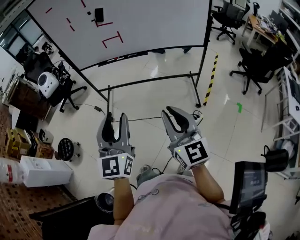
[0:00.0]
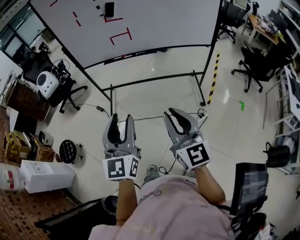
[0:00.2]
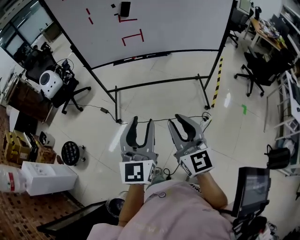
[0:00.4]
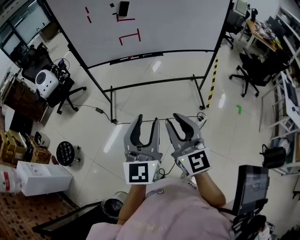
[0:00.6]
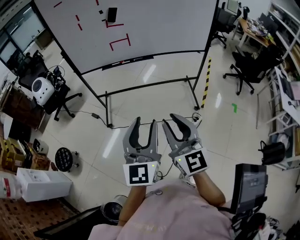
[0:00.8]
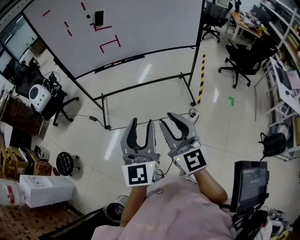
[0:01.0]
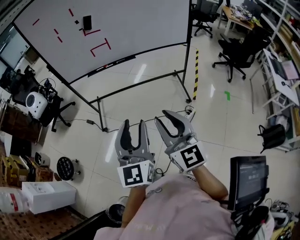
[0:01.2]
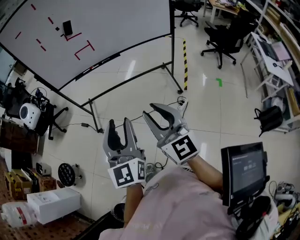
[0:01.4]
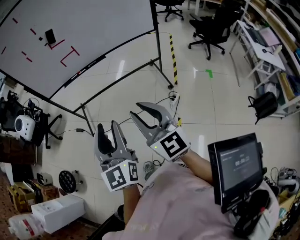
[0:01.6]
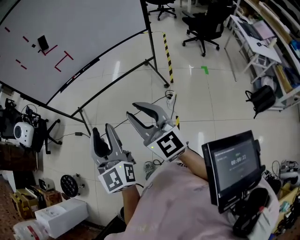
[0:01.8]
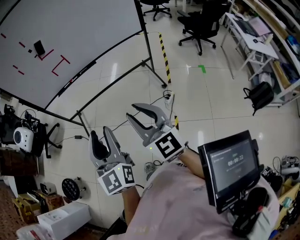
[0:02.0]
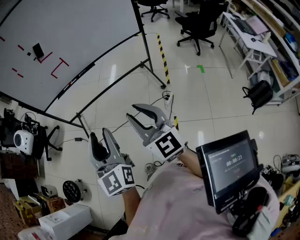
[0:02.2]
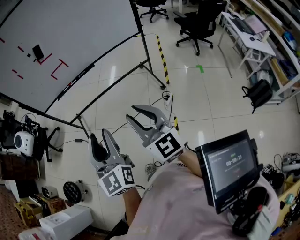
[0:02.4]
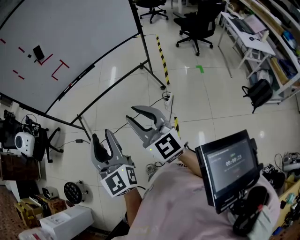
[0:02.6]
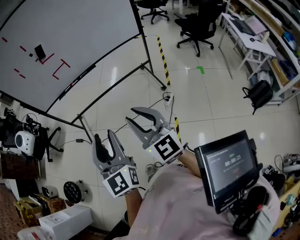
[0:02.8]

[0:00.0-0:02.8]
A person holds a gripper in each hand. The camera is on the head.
0.0 to 1.4 s: The left gripper reaches roughly 10 cm to the left, then returns, while the right gripper travels to the left by some 5 cm.
1.4 to 2.8 s: There are only small adjustments of the grippers.

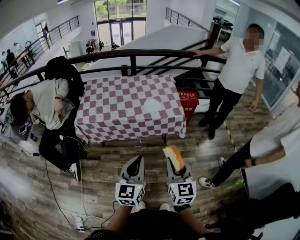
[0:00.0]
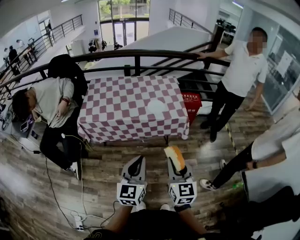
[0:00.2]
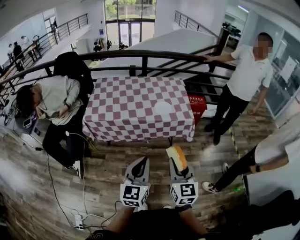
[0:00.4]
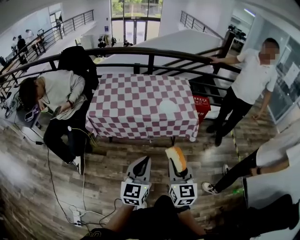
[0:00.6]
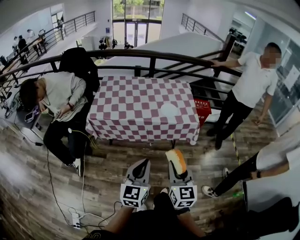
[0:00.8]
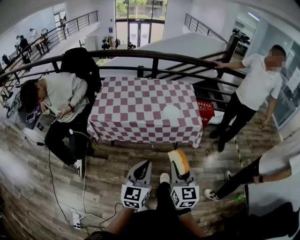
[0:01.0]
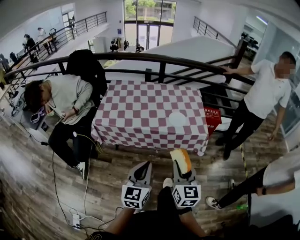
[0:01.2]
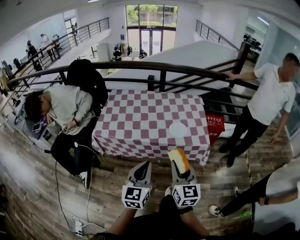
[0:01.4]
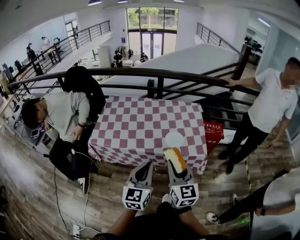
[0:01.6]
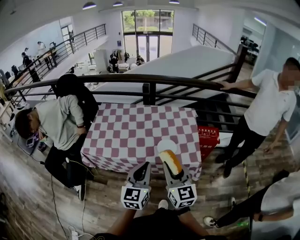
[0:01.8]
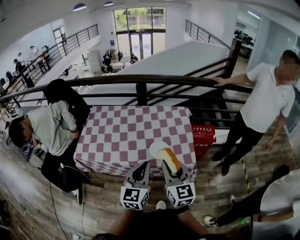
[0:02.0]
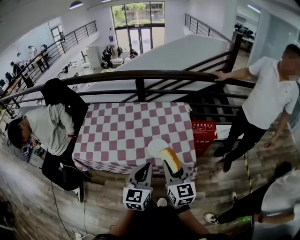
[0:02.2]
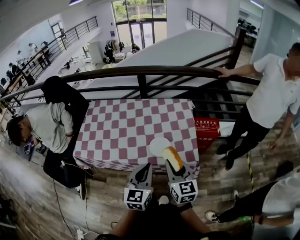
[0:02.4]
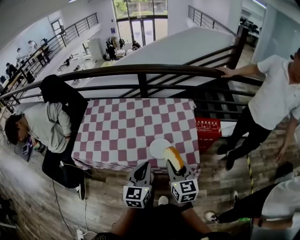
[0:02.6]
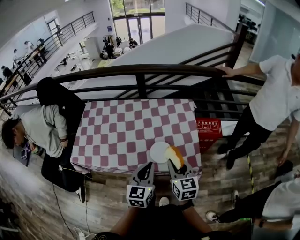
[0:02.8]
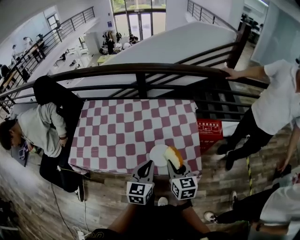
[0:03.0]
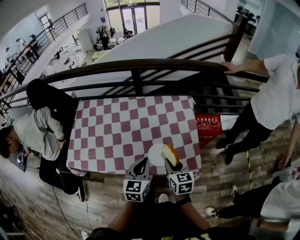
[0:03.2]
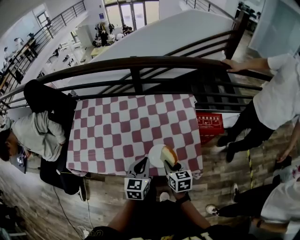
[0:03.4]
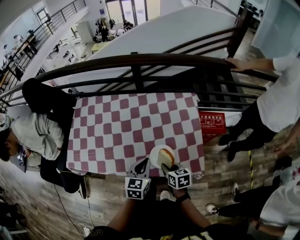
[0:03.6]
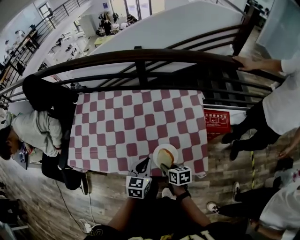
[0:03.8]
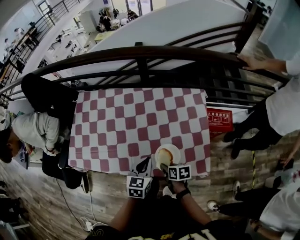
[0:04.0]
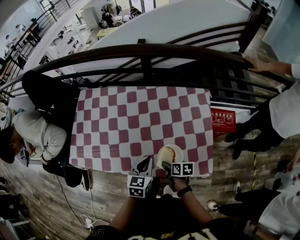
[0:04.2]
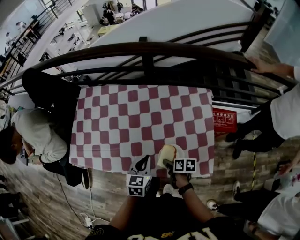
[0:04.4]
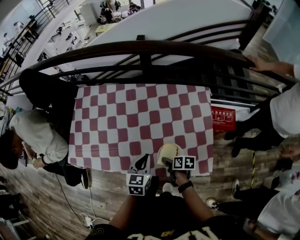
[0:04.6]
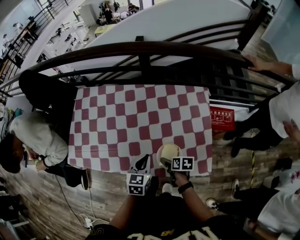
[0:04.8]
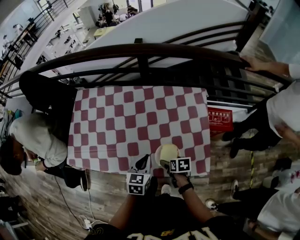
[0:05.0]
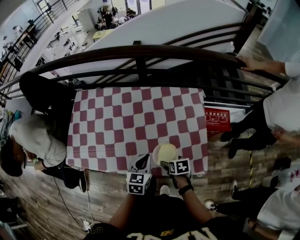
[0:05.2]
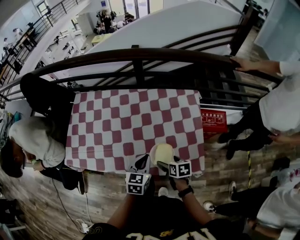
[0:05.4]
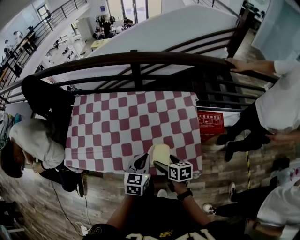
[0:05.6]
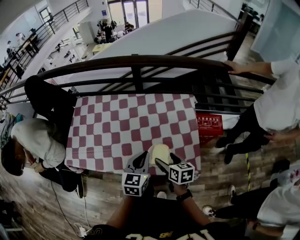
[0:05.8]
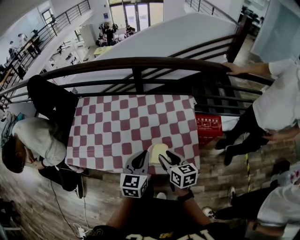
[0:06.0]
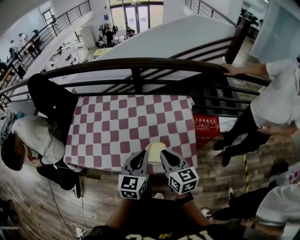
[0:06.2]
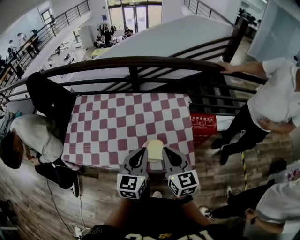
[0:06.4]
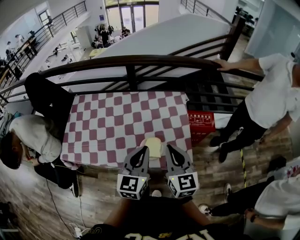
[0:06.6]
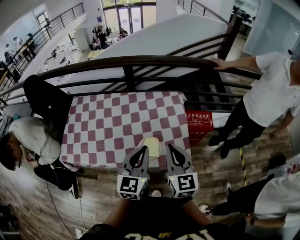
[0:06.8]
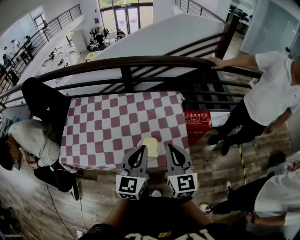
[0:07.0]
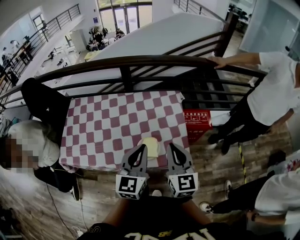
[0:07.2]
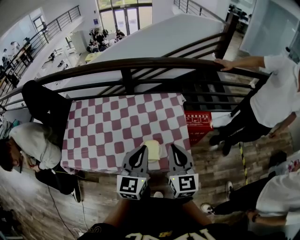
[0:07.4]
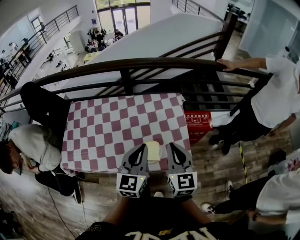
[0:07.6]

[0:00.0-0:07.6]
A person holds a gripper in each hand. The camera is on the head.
0.0 to 1.6 s: Both grippers travel together forward, some 20 cm.
1.6 to 3.0 s: The grippers both shift forward, downward and to the right by some 30 cm. The right gripper rotates approximately 20 degrees.
3.0 to 4.6 s: The right gripper is displaced downward by some 20 cm, and rotates approximately 60 degrees. The left gripper goes approximately 15 cm downward and forward.
4.6 to 6.0 s: The left gripper moves upward, about 15 cm; the right gripper travels upward by roughly 20 cm, rotates roughly 40 degrees, and opens, then closes again.
6.0 to 7.6 s: The right gripper is displaced upward and to the right by some 15 cm, changes its angle by about 40 degrees, and closes its fingers, while the left gripper shifts approximately 10 cm upward and to the right.

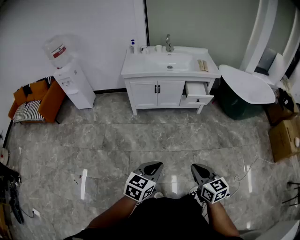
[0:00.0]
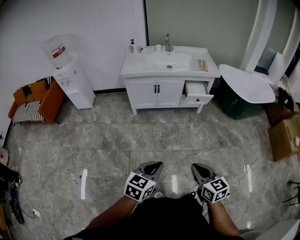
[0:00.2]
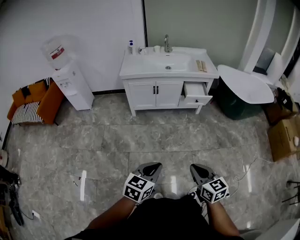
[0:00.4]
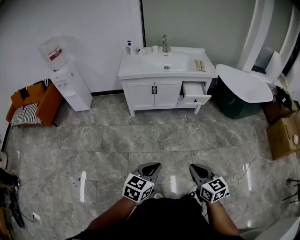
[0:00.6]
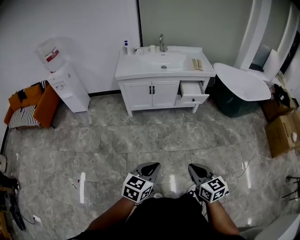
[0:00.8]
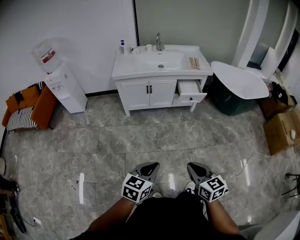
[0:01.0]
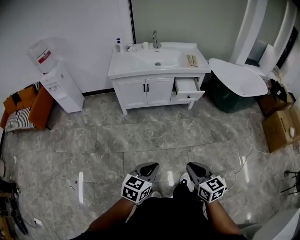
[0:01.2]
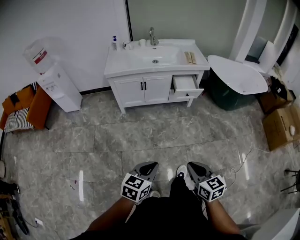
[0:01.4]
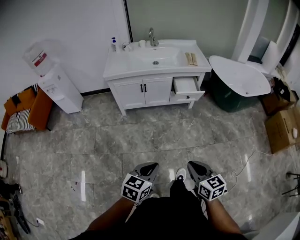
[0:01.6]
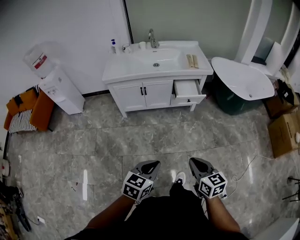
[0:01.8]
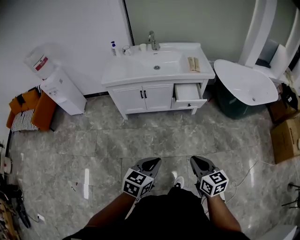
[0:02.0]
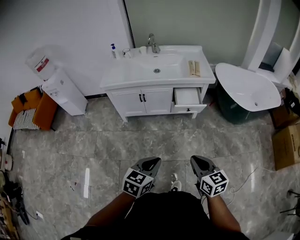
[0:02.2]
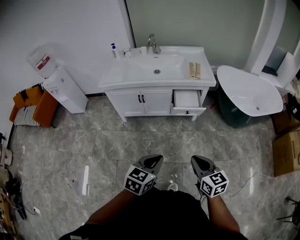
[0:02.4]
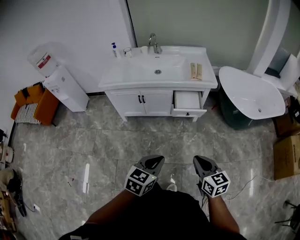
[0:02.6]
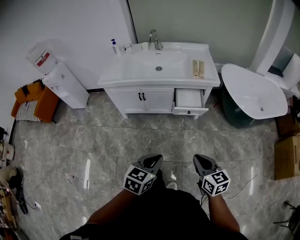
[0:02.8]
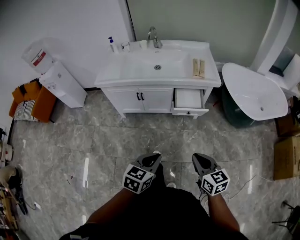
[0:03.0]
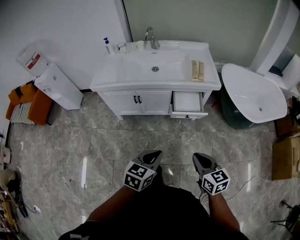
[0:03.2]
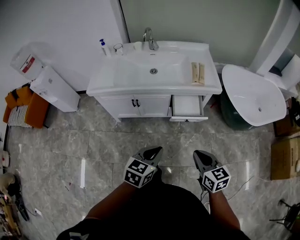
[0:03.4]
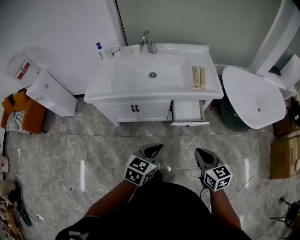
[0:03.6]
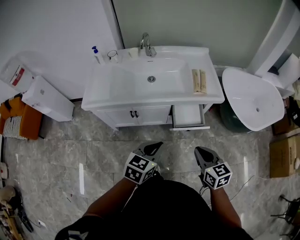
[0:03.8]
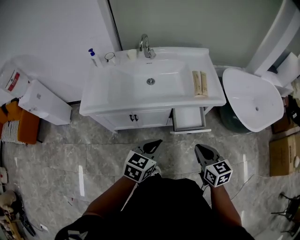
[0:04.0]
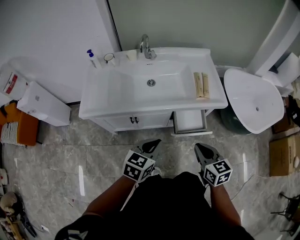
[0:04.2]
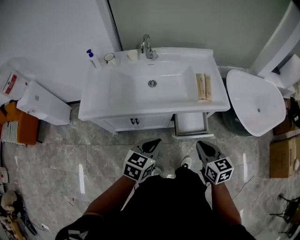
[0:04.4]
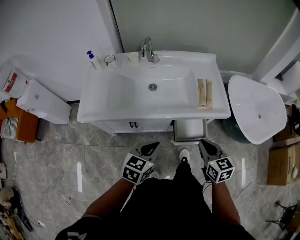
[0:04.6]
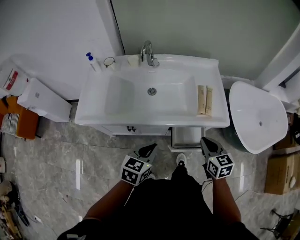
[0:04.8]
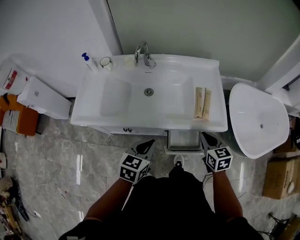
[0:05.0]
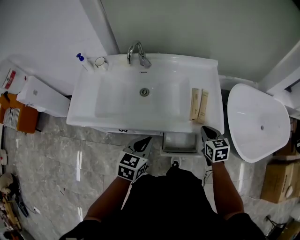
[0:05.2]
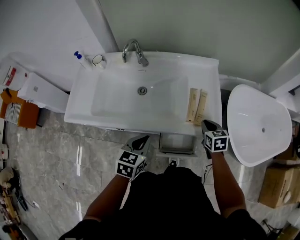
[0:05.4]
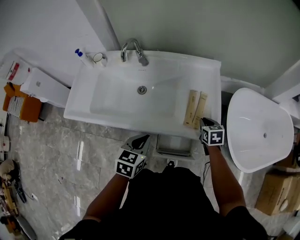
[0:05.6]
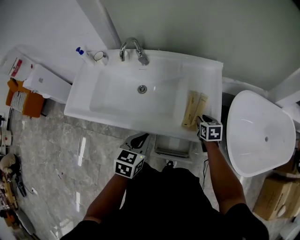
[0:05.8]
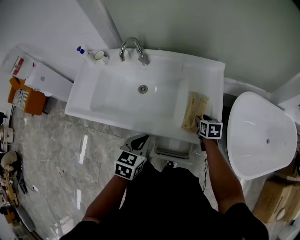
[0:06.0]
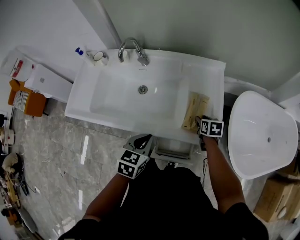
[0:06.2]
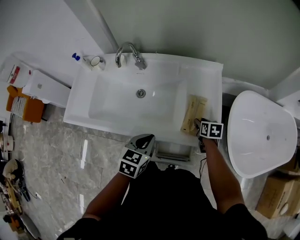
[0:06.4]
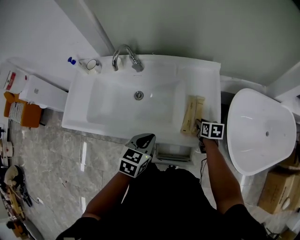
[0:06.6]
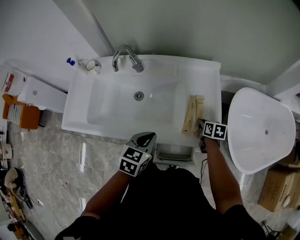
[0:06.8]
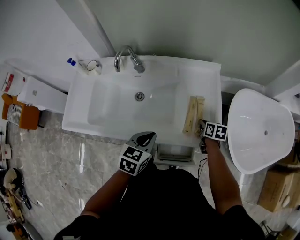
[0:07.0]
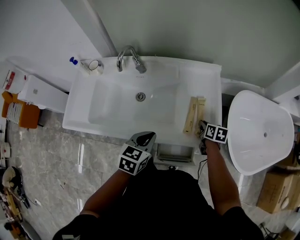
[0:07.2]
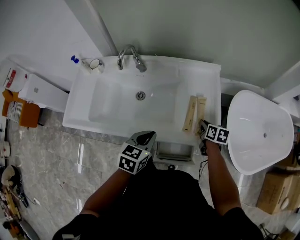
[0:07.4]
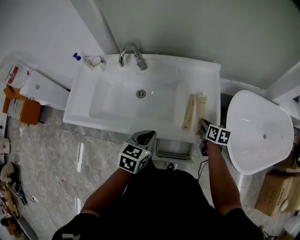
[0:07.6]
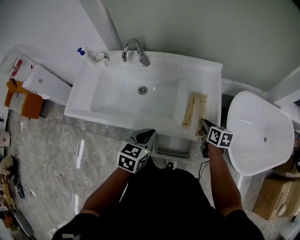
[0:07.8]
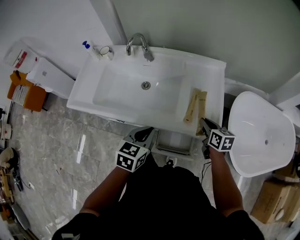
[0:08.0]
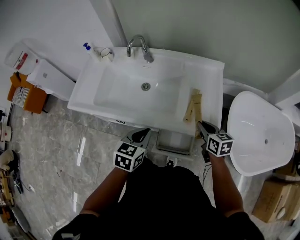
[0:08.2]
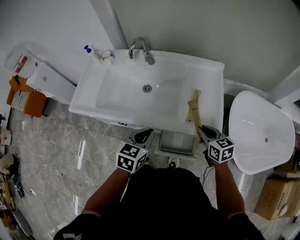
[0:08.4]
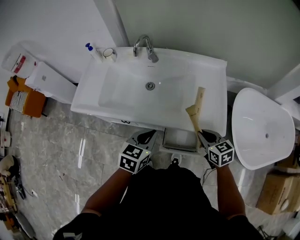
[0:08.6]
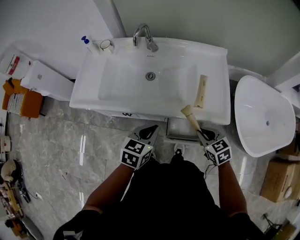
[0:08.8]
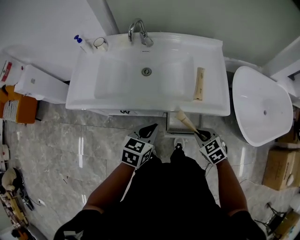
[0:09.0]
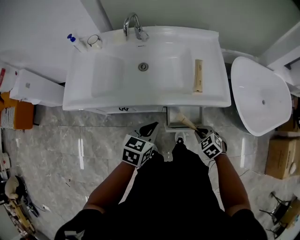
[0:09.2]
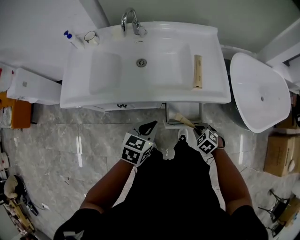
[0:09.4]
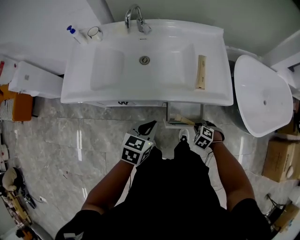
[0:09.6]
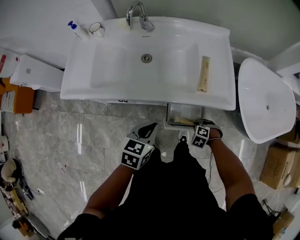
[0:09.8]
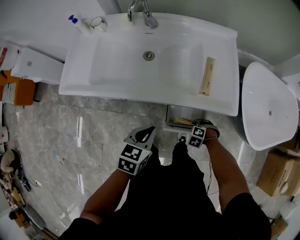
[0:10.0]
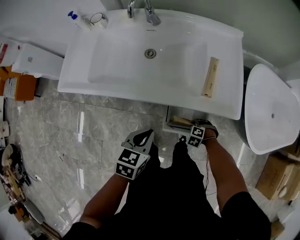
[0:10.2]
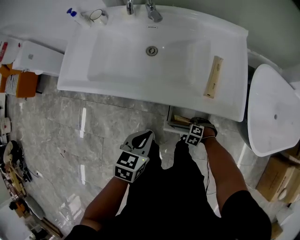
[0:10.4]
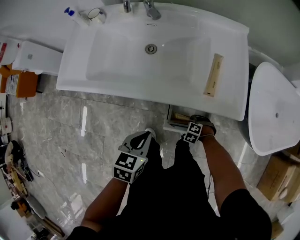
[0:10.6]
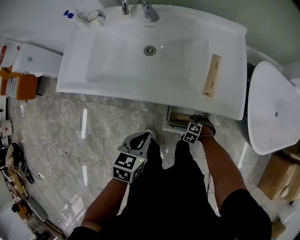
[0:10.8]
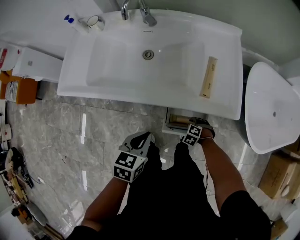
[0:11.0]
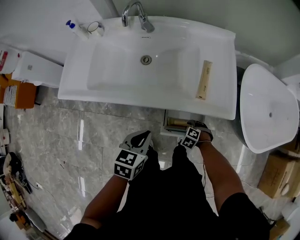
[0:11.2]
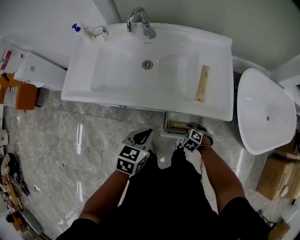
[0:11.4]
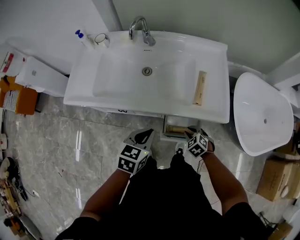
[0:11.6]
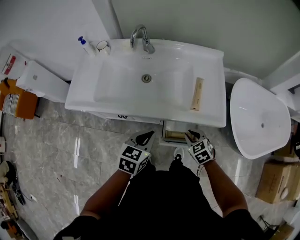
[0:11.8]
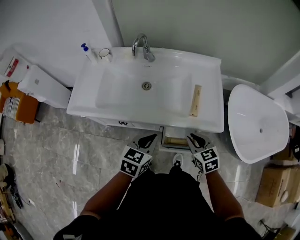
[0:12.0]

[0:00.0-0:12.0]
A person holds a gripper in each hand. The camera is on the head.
0.0 to 1.6 s: The grippers both shift forward by about 10 cm.
1.6 to 3.0 s: The grippers both shift forward and to the right by some 30 cm.
3.0 to 4.4 s: The two grippers go roughly 30 cm forward.
4.4 to 6.0 s: The left gripper shifts roughly 20 cm forward and to the right, and changes its angle by approximately 20 degrees, while the right gripper travels forward, downward and to the right by approximately 40 cm, turns by approximately 20 degrees, and opens its fingers.
6.0 to 7.6 s: The right gripper turns by approximately 20 degrees, and closes its fingers.
7.6 to 9.0 s: The left gripper moves backward and to the left, roughly 10 cm; the right gripper shifts some 25 cm backward and to the left, and rolls counterclockwise, seen from behind, by roughly 50 degrees.
9.0 to 10.4 s: The left gripper goes roughly 5 cm downward. The right gripper travels downward by about 30 cm, and changes its angle by approximately 50 degrees.
10.4 to 12.0 s: The left gripper moves upward, approximately 10 cm. Meanwhile the right gripper shifts roughly 35 cm upward, and angles its fingers upward, by about 40 degrees.

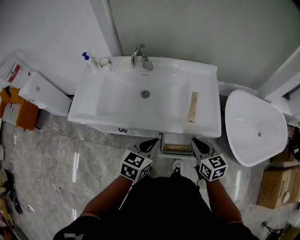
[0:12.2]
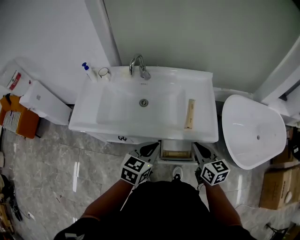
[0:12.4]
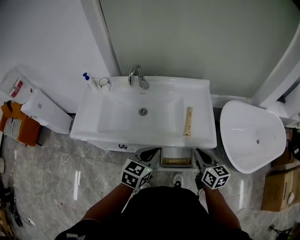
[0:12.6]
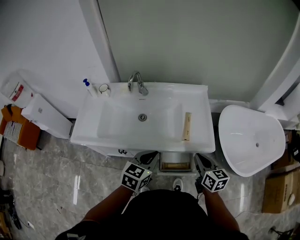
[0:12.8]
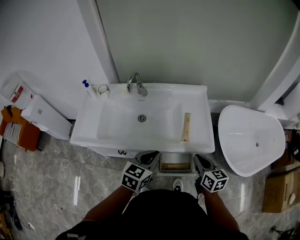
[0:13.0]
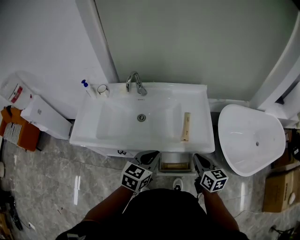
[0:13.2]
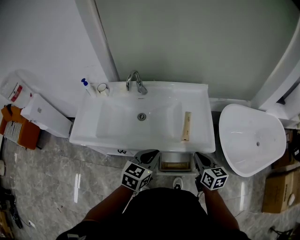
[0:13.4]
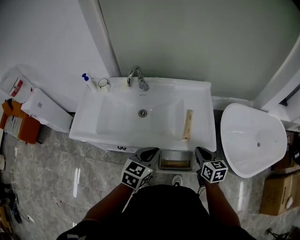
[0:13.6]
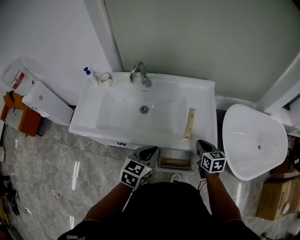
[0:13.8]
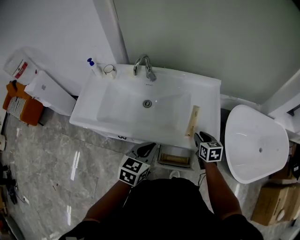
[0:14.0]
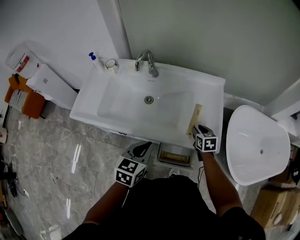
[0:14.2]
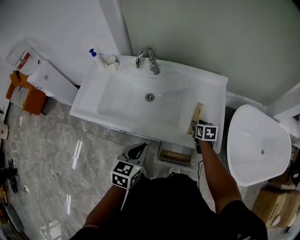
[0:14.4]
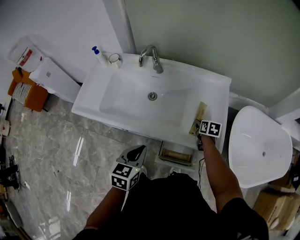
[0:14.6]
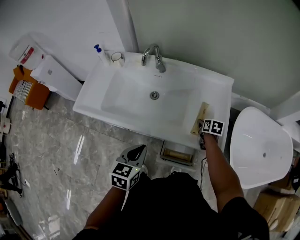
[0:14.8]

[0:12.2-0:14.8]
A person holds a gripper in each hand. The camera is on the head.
12.2 to 13.4 s: The right gripper moves to the right, about 5 cm. Meanwhile the left gripper changes place by approximately 5 cm.
13.4 to 14.8 s: The right gripper goes approximately 30 cm forward and downward, turns by approximately 30 degrees, and opens its fingers. Meanwhile the left gripper goes roughly 5 cm to the left, and rotates about 20 degrees.
